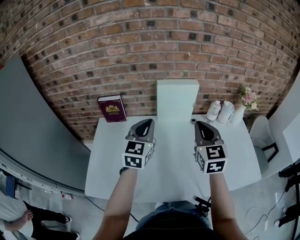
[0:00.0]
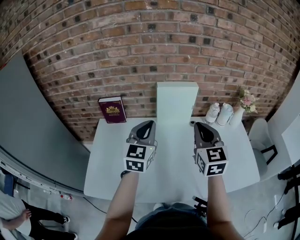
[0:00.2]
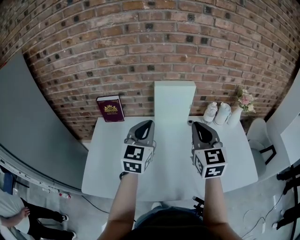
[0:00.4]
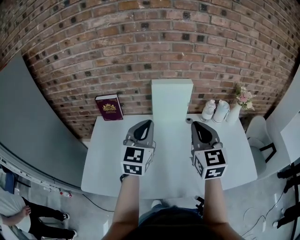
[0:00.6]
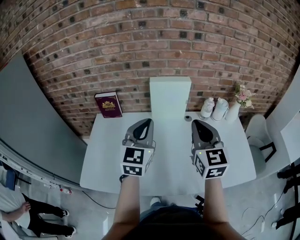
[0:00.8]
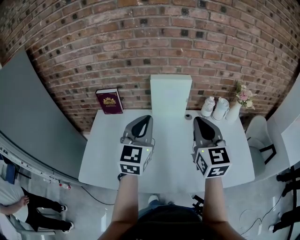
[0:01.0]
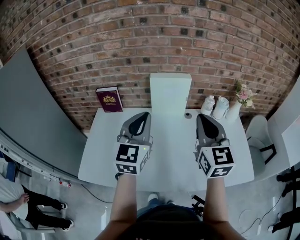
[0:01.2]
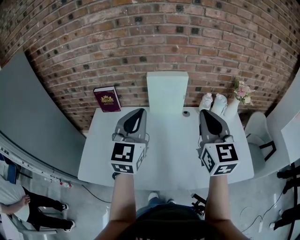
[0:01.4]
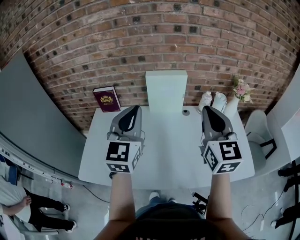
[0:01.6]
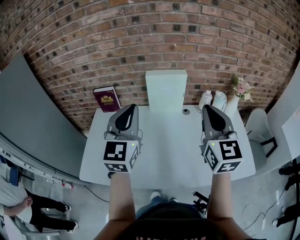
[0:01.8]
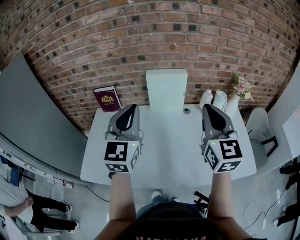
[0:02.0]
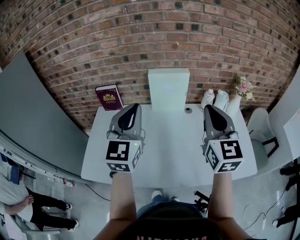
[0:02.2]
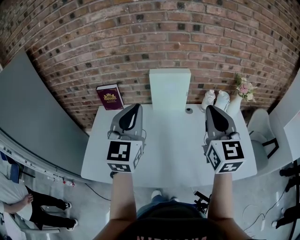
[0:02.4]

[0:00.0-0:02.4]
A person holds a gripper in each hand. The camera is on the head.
0.0 to 1.2 s: The two grippers go about 10 cm upward, backward and to the right.
1.2 to 2.4 s: The grippers make only small movements.

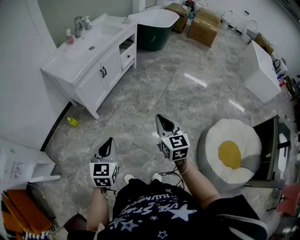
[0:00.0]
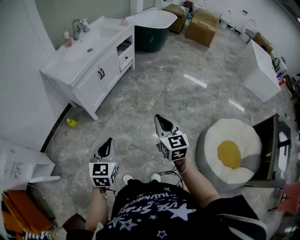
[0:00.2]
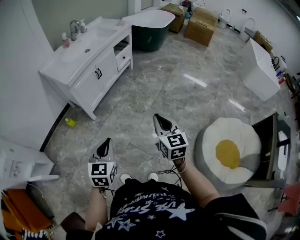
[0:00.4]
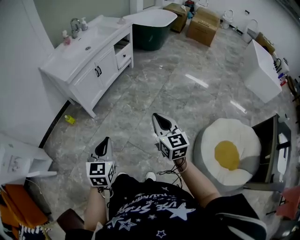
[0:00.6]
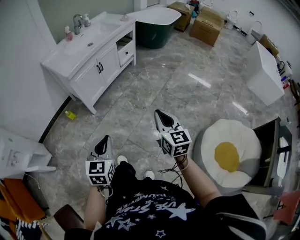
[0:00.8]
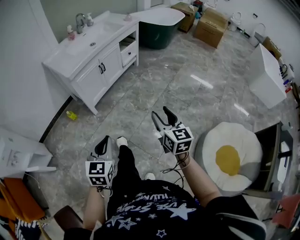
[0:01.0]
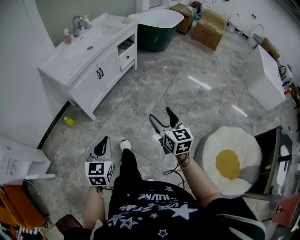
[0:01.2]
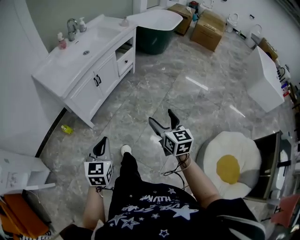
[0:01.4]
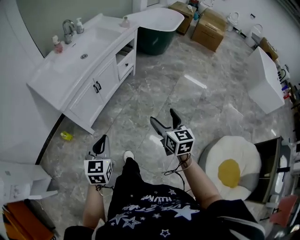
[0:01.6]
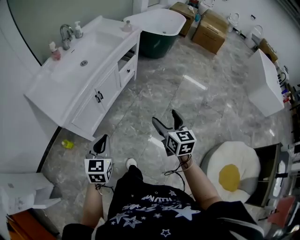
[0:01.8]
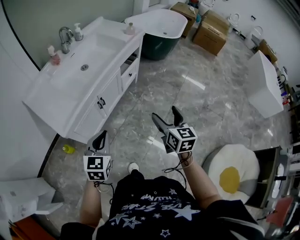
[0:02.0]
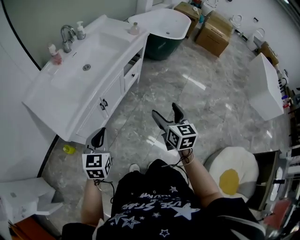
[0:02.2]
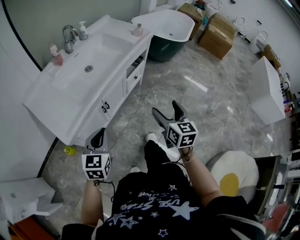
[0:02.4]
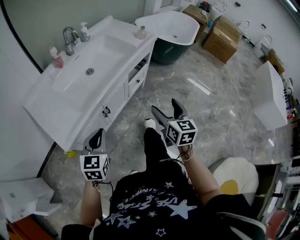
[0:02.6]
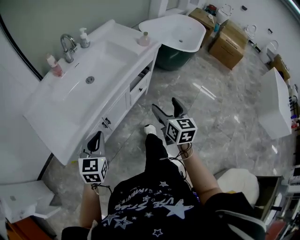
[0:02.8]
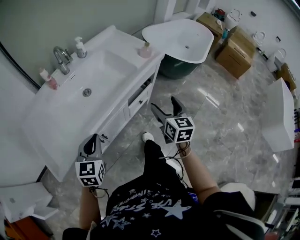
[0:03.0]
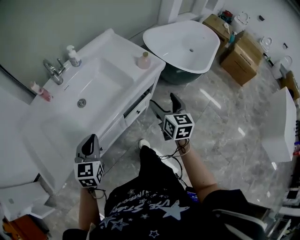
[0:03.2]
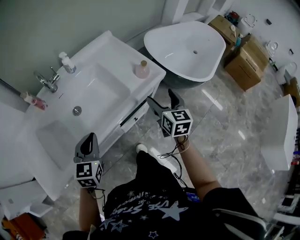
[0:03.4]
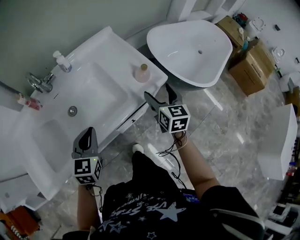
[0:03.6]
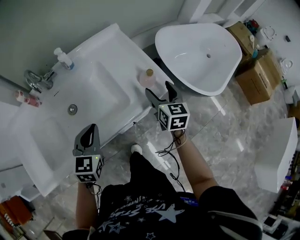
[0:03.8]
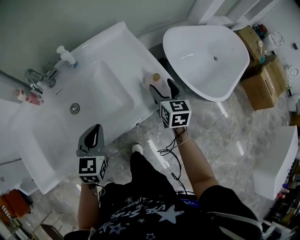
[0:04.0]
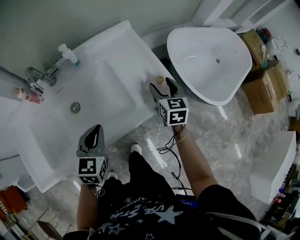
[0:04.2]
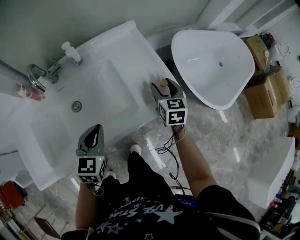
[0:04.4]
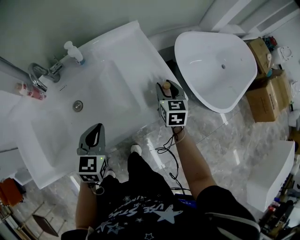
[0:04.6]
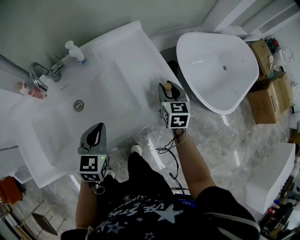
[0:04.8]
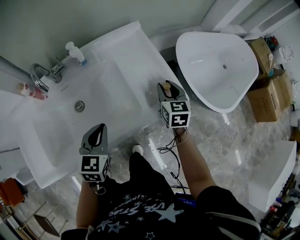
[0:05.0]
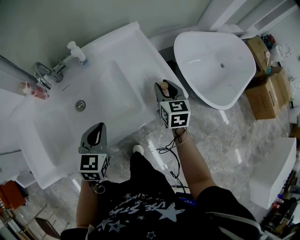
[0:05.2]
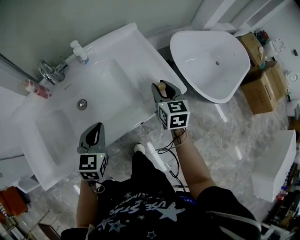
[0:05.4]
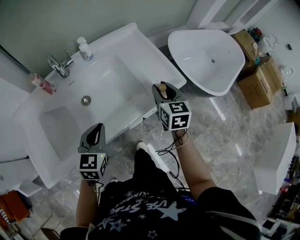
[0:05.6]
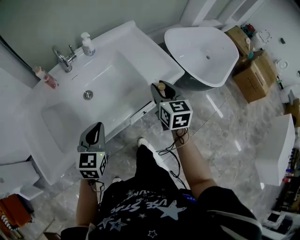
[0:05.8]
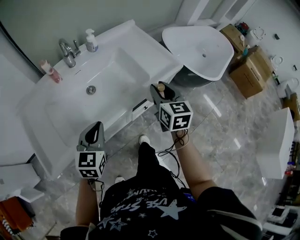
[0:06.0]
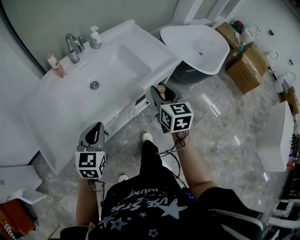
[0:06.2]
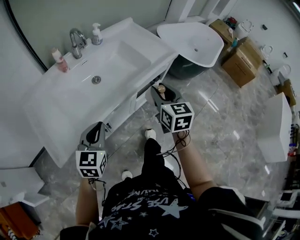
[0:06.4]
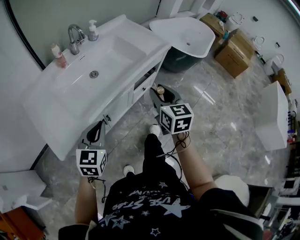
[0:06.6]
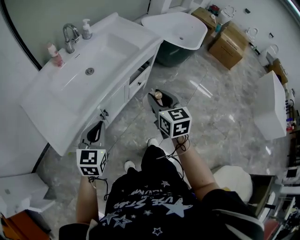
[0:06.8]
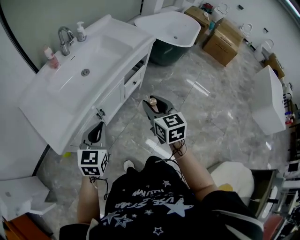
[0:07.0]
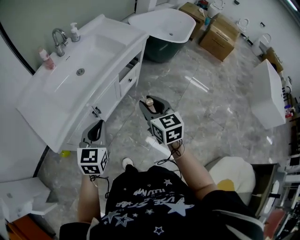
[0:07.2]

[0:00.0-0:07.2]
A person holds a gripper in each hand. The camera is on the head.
0.0 to 1.4 s: The right gripper travels forward and to the right by approximately 15 cm, and opens its fingers; the left gripper moves forward, approximately 15 cm.
1.4 to 2.8 s: The pair of grippers is taken forward, approximately 50 cm.
2.8 to 4.4 s: The pair of grippers is taken forward, some 50 cm. The right gripper changes its angle by roughly 30 degrees, and closes. The left gripper rotates about 20 degrees.
4.4 to 5.8 s: The left gripper shifts approximately 15 cm backward and to the left. The right gripper heads backward, upward and to the left, covering some 20 cm.
5.8 to 7.2 s: Both grippers move backward, some 35 cm.

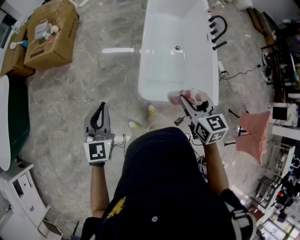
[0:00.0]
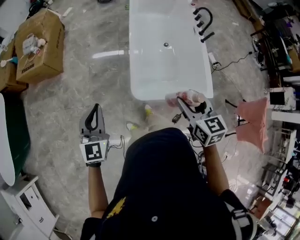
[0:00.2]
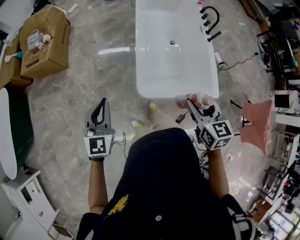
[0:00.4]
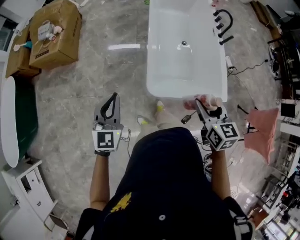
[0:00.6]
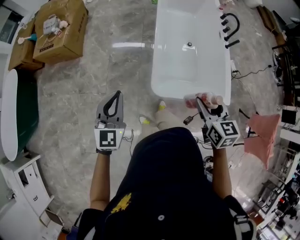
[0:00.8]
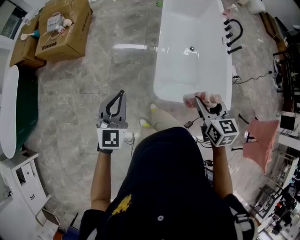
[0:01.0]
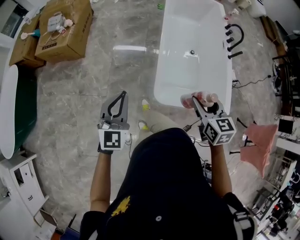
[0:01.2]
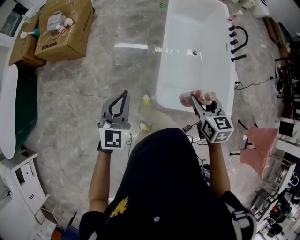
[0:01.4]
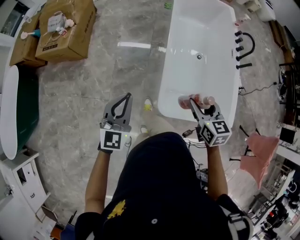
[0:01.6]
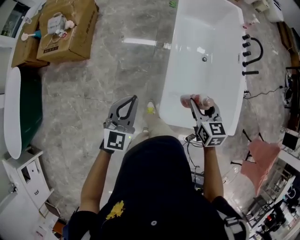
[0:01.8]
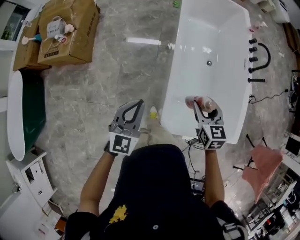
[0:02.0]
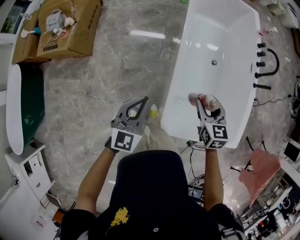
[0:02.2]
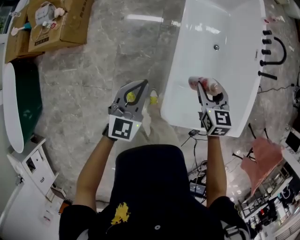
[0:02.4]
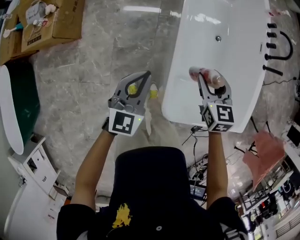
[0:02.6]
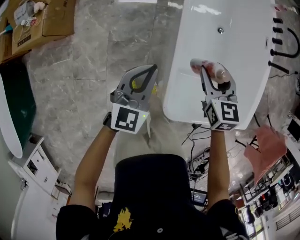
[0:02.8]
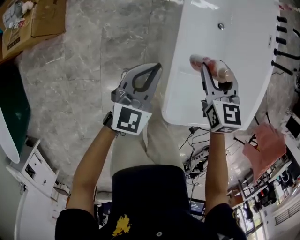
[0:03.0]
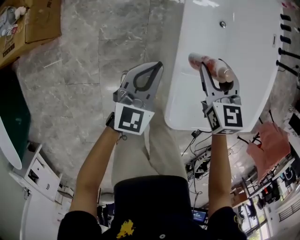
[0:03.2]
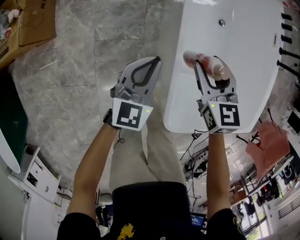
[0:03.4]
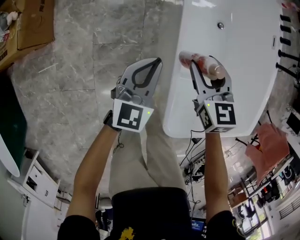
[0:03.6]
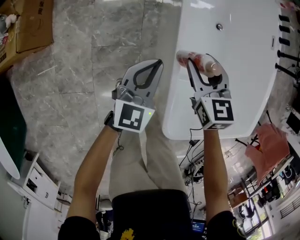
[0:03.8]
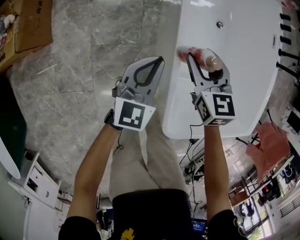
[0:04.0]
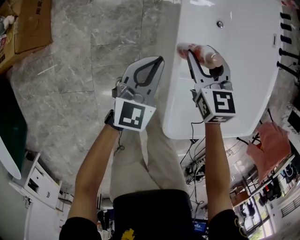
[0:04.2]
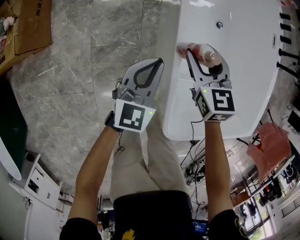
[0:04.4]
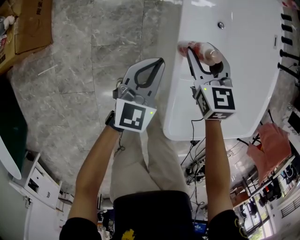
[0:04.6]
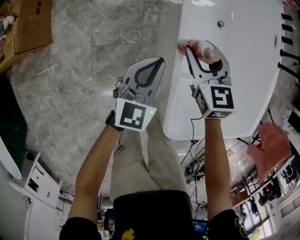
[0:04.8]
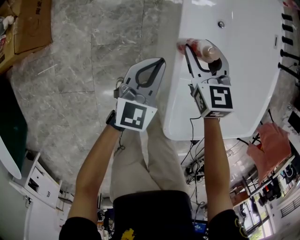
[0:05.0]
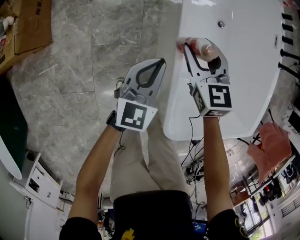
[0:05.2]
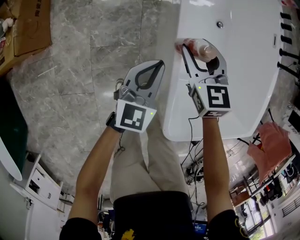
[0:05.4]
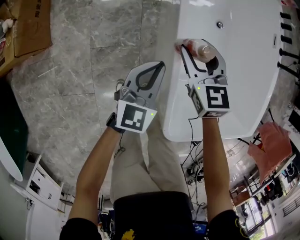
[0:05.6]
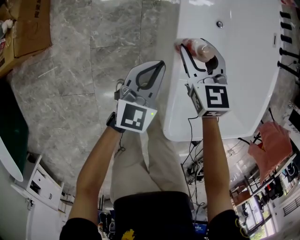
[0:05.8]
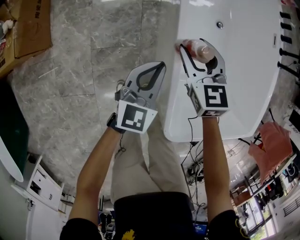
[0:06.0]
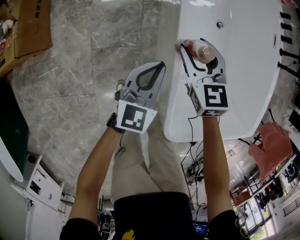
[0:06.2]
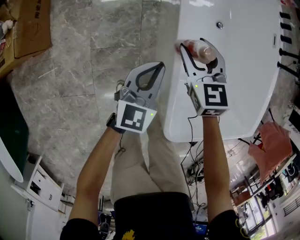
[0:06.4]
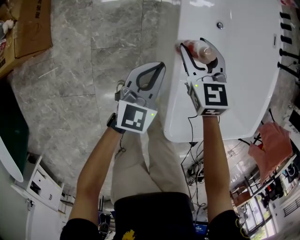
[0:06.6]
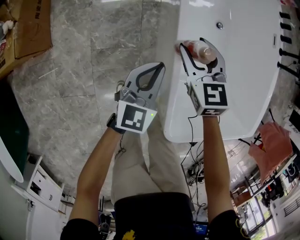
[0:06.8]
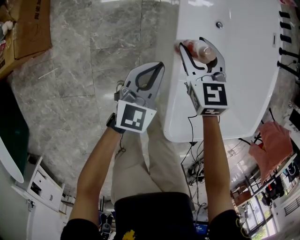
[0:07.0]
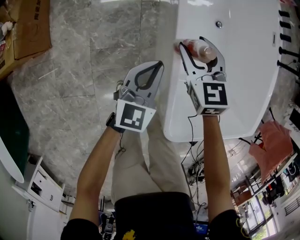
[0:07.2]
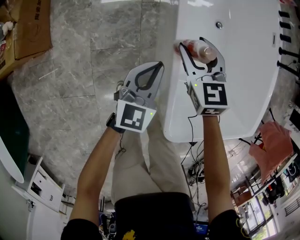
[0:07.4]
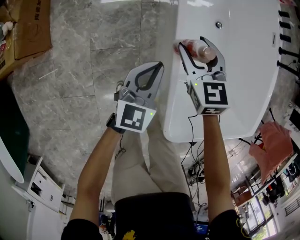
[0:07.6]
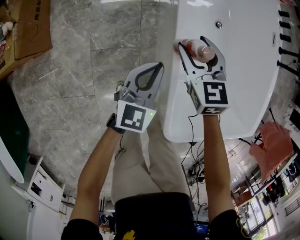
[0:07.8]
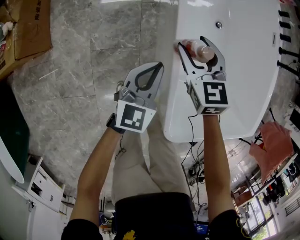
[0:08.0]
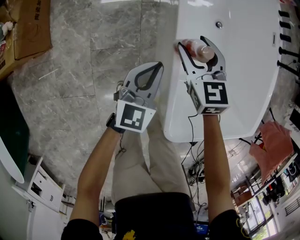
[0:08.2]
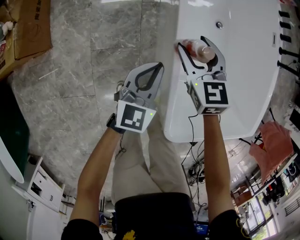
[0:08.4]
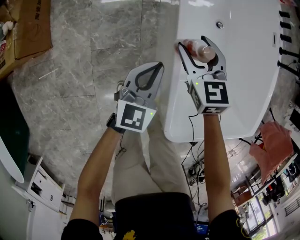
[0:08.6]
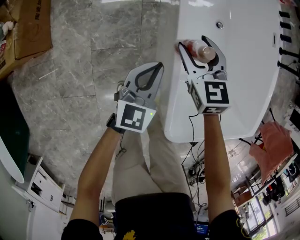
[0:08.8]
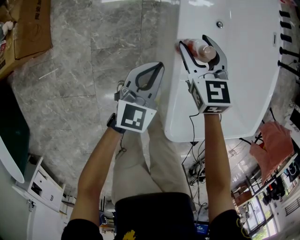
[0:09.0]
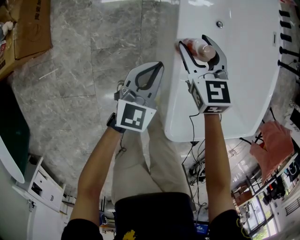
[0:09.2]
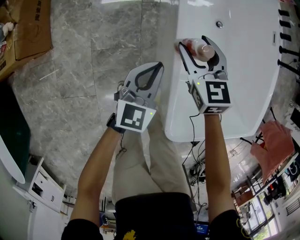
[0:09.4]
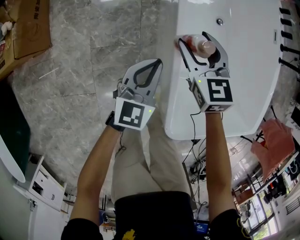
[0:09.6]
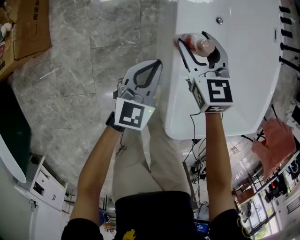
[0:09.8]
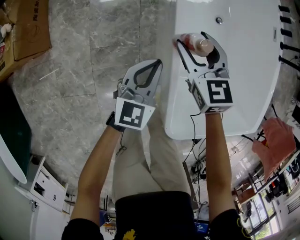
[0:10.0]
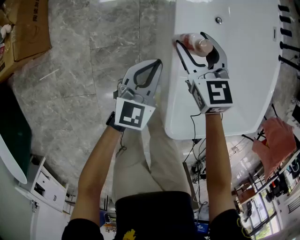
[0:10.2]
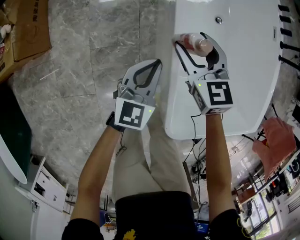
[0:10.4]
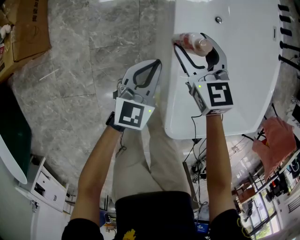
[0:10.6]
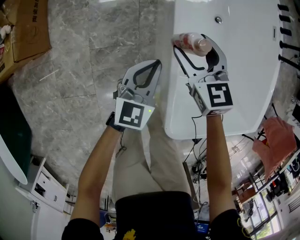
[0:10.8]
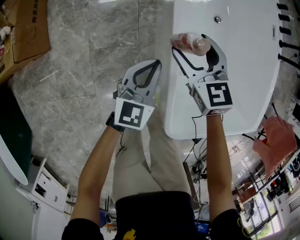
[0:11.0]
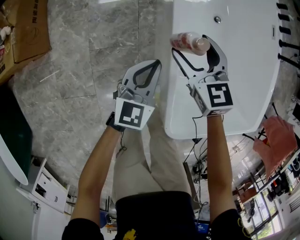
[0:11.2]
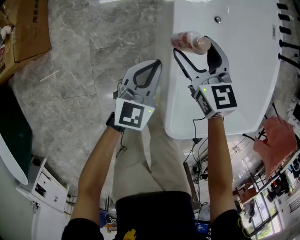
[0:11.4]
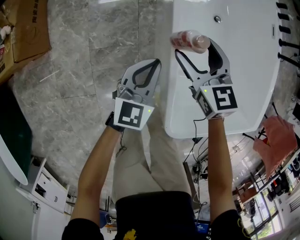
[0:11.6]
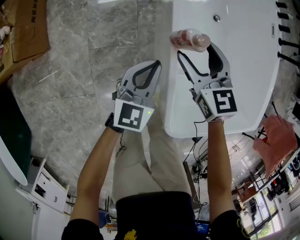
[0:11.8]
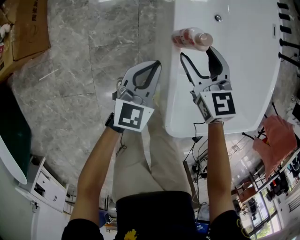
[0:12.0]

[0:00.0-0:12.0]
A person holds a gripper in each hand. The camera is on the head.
0.0 to 1.6 s: The grippers both shift forward by approximately 15 cm.
1.6 to 3.0 s: The right gripper shifts about 35 cm forward and downward. The left gripper heads downward and forward, covering some 40 cm.
3.0 to 4.4 s: Both grippers move downward and forward, roughly 10 cm.
4.4 to 6.0 s: The grippers make only small movements.
6.0 to 9.0 s: Both grippers stay about where they are.
9.0 to 10.4 s: The grippers stay close to where they were, moving slightly.
10.4 to 12.0 s: The right gripper ends up approximately 5 cm from where it was.

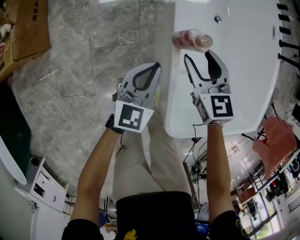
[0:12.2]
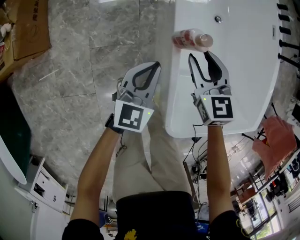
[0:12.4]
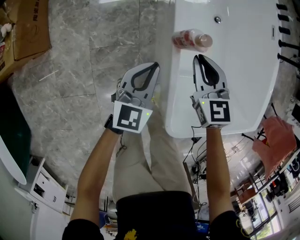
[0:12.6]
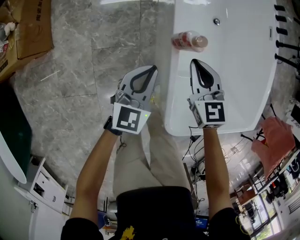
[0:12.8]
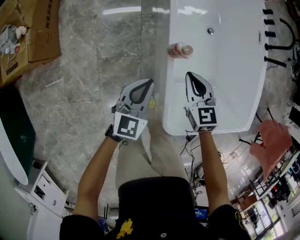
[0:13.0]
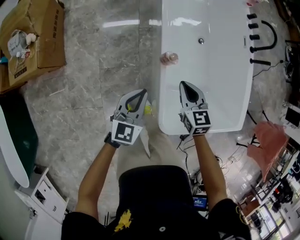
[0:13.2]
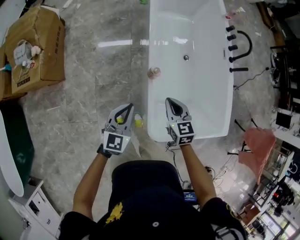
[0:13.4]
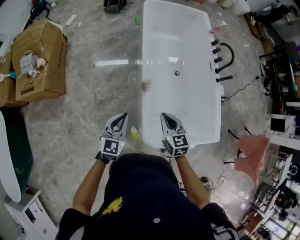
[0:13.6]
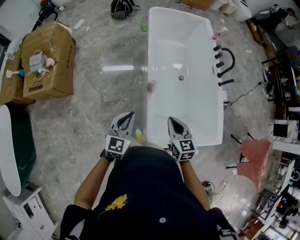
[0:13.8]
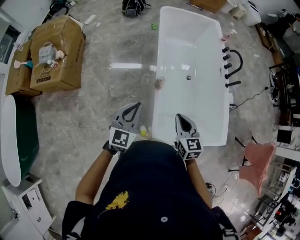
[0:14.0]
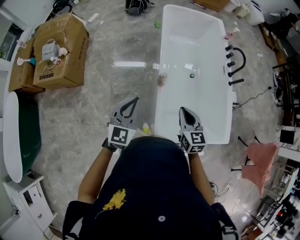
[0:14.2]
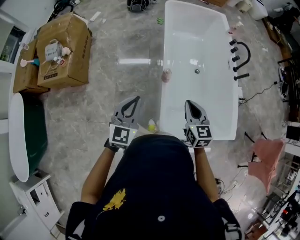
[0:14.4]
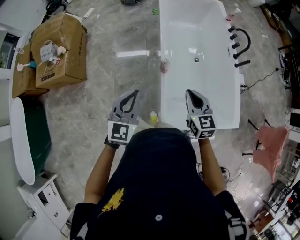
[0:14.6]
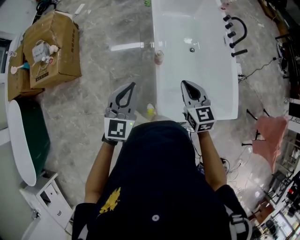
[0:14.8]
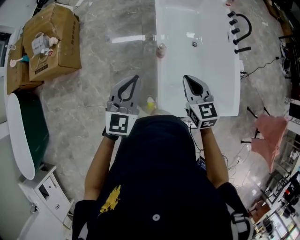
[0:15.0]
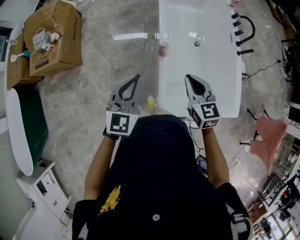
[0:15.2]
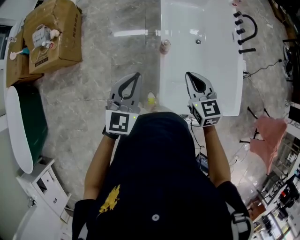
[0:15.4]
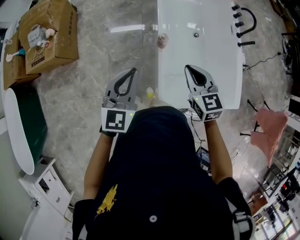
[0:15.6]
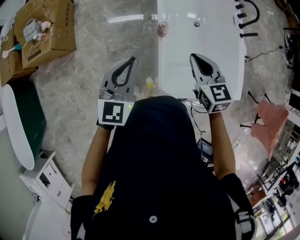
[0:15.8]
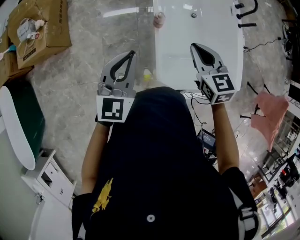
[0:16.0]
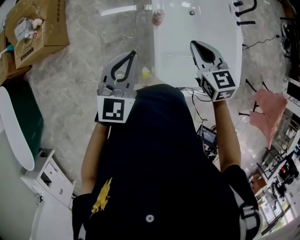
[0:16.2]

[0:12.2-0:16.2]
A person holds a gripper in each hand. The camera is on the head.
12.2 to 13.6 s: The right gripper moves upward and backward, about 30 cm, and closes up. Meanwhile the left gripper shifts roughly 30 cm upward.
13.6 to 14.8 s: Both grippers move upward, approximately 10 cm.
14.8 to 16.2 s: The grippers stay close to where they were, moving slightly.
